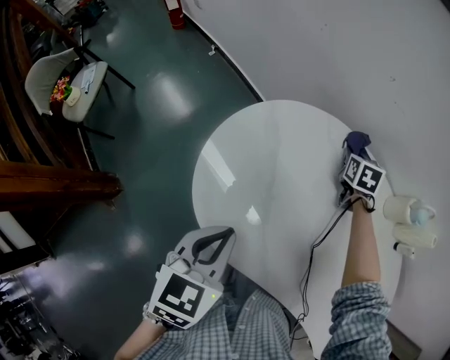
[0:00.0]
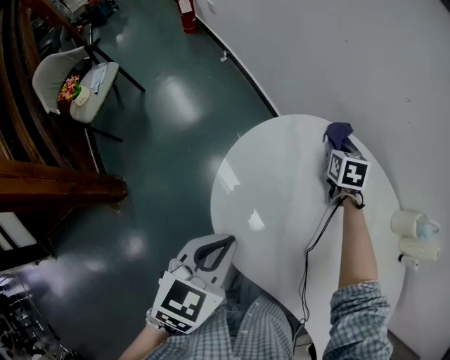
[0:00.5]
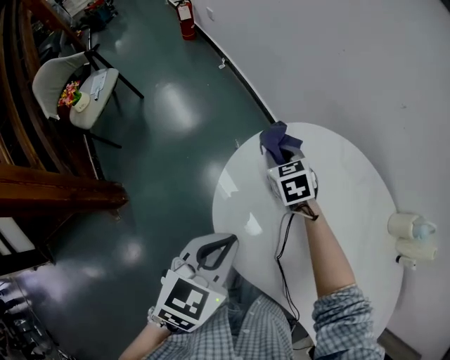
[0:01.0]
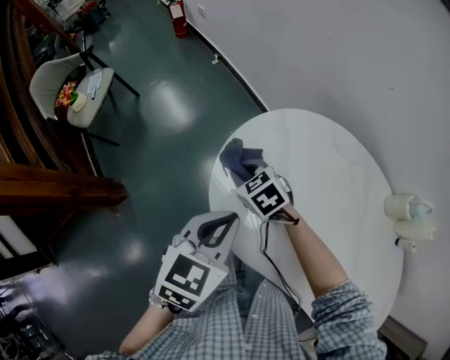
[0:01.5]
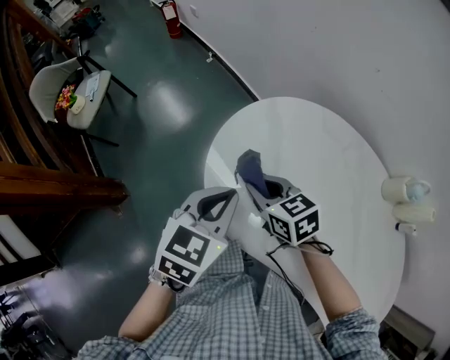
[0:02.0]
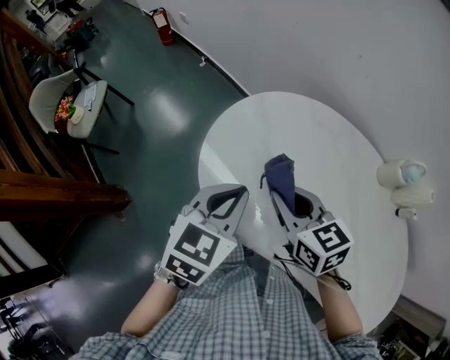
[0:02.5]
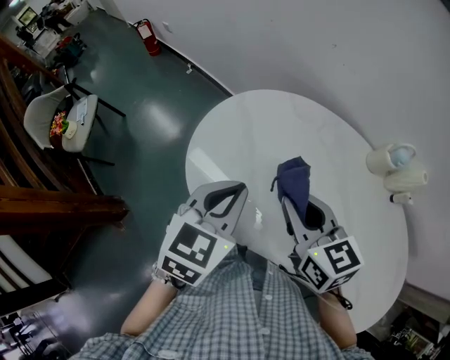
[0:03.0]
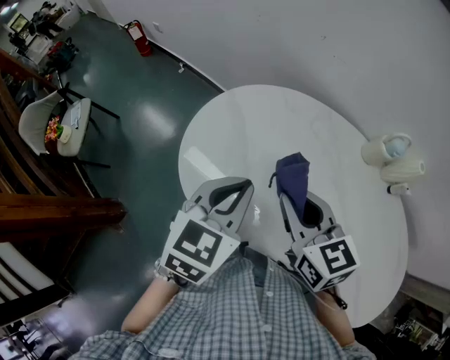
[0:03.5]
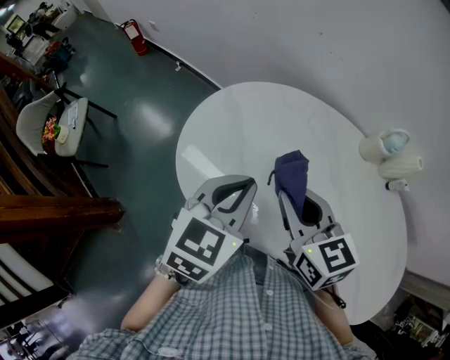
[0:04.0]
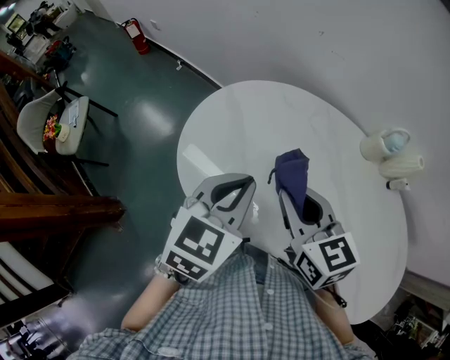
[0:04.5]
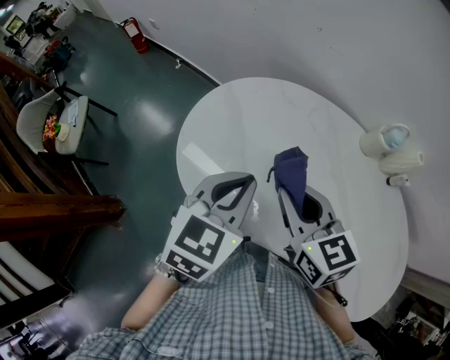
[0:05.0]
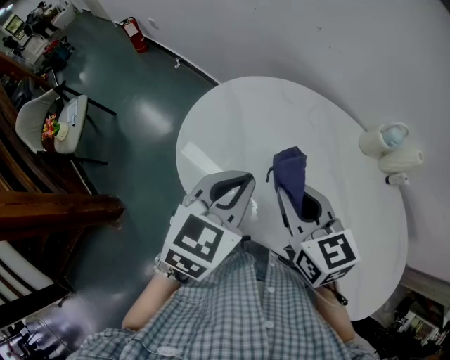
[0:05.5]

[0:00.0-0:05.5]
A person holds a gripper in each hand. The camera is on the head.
0:00.0 to 0:02.0: The right gripper ends up approximately 40 cm from where it was, and swivels approximately 50 degrees.
0:02.0 to 0:03.5: The right gripper shifts approximately 20 cm to the right, upward and backward, and turns by roughly 30 degrees; the left gripper is displaced to the right by approximately 10 cm.
0:03.5 to 0:05.5: Neither gripper changes place.

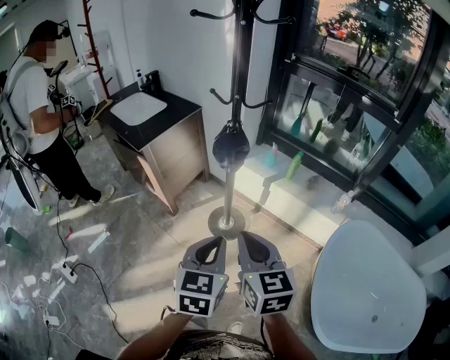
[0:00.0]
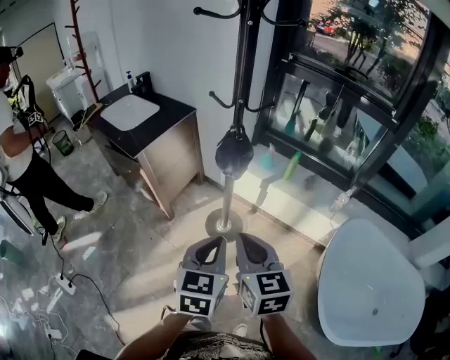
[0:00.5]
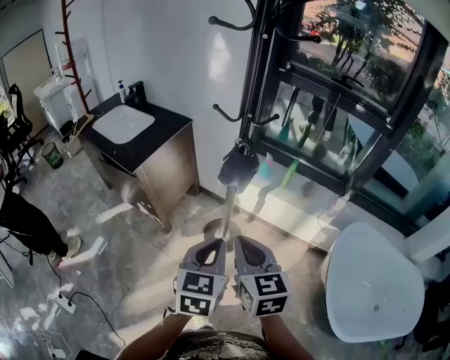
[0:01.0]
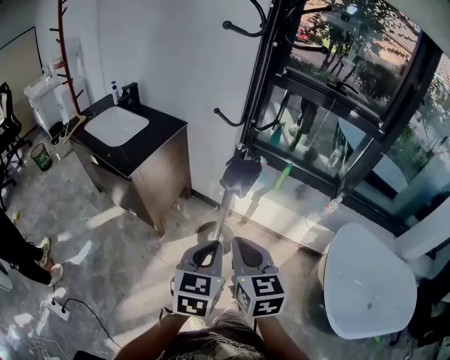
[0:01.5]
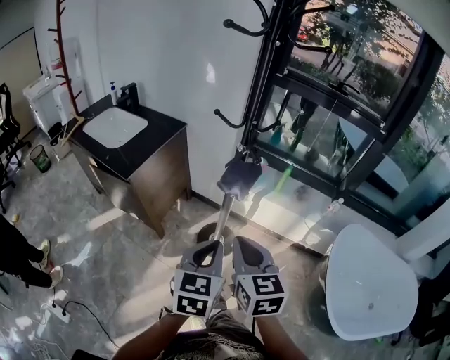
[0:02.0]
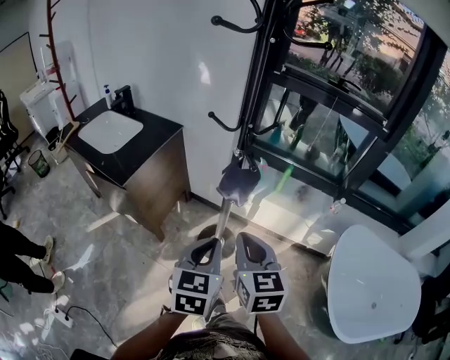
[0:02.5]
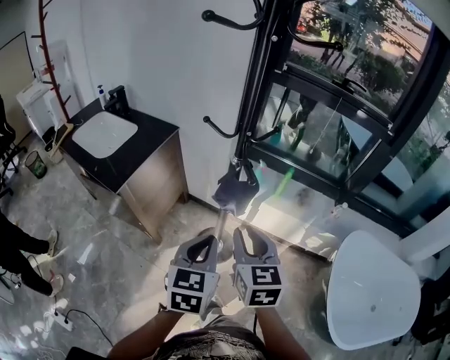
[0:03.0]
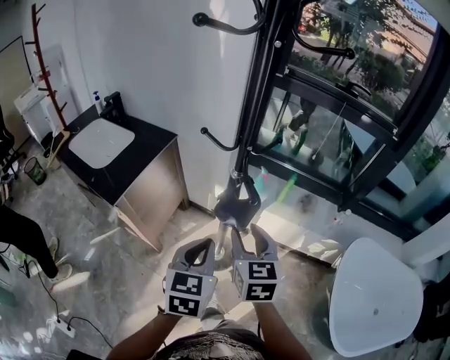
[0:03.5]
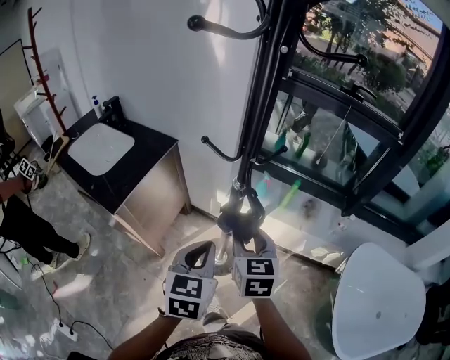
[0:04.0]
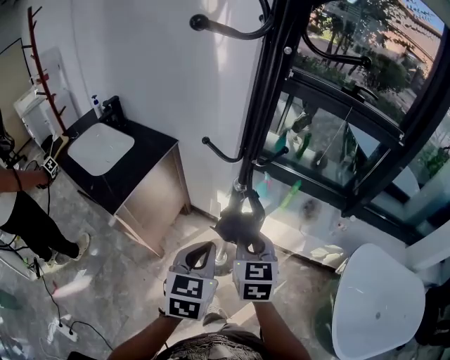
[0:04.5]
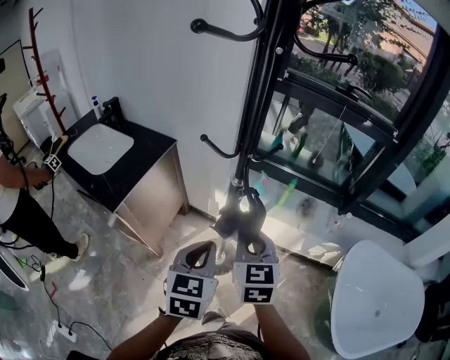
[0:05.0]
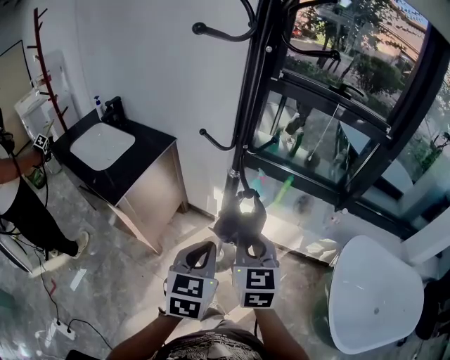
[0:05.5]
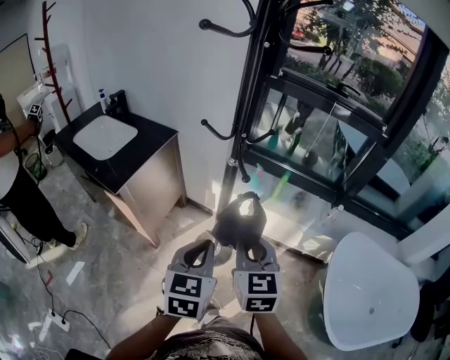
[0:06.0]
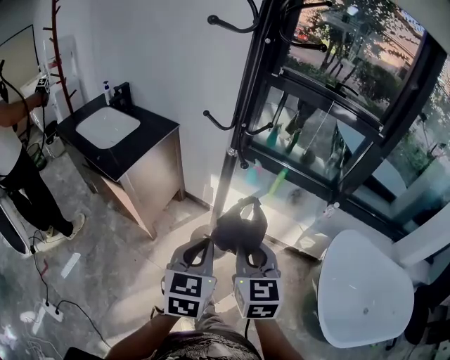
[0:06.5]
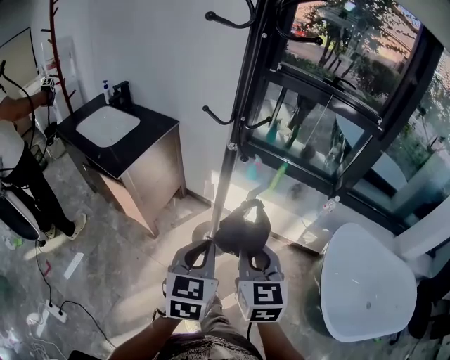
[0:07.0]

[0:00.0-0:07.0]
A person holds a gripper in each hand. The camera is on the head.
0:00.0 to 0:02.0: Both grippers travel together to the left and forward, approximately 15 cm.
0:02.0 to 0:03.5: The two grippers go roughly 15 cm forward. The right gripper opens its fingers.
0:03.5 to 0:05.0: The right gripper closes up.
0:05.0 to 0:07.0: Both grippers travel together backward, roughly 15 cm.

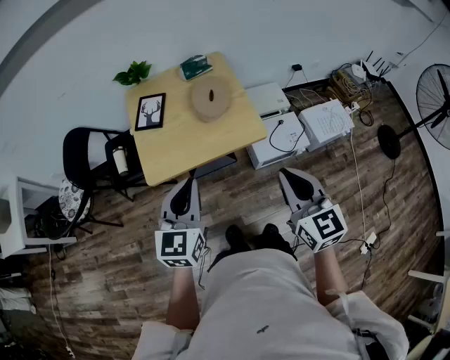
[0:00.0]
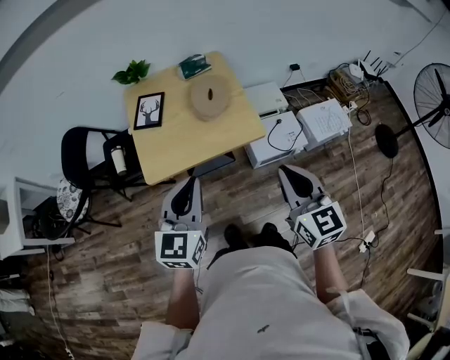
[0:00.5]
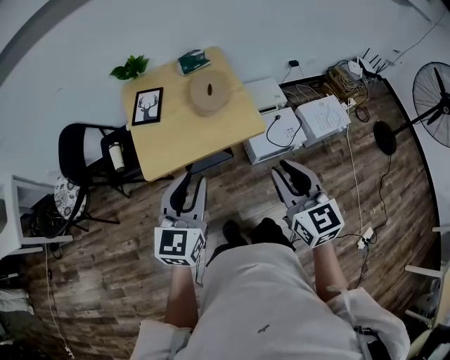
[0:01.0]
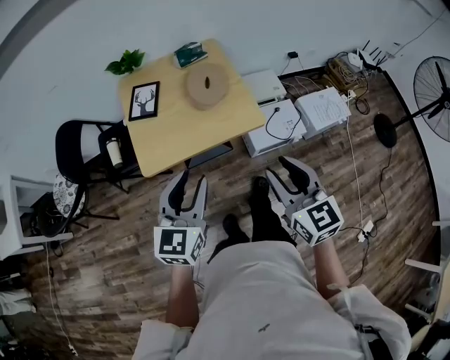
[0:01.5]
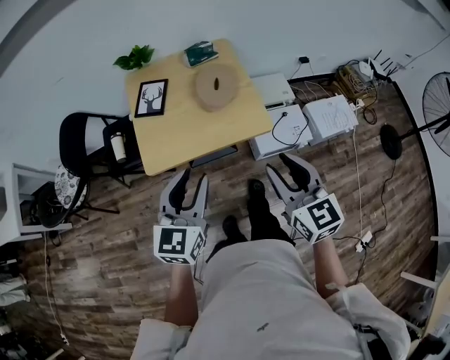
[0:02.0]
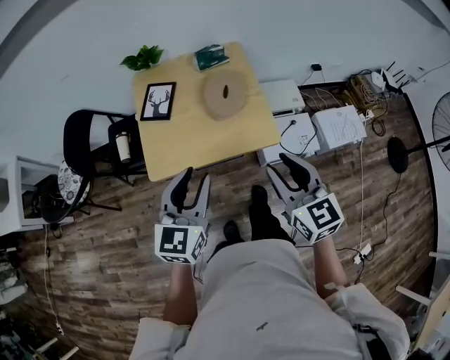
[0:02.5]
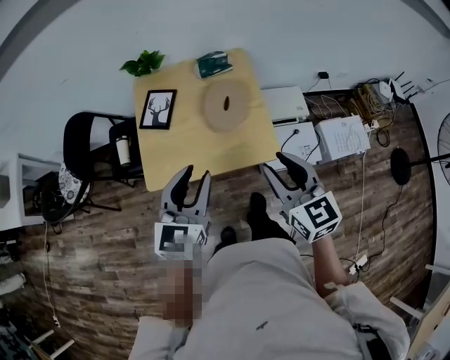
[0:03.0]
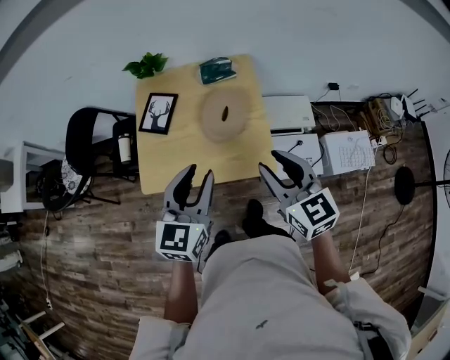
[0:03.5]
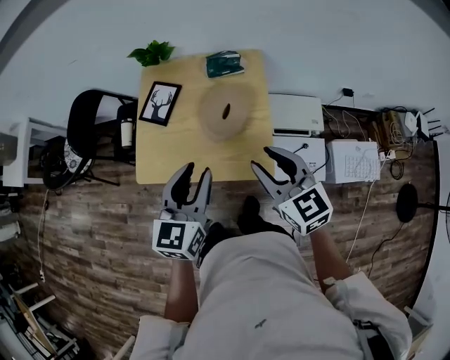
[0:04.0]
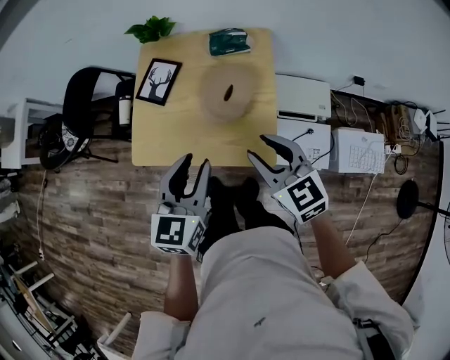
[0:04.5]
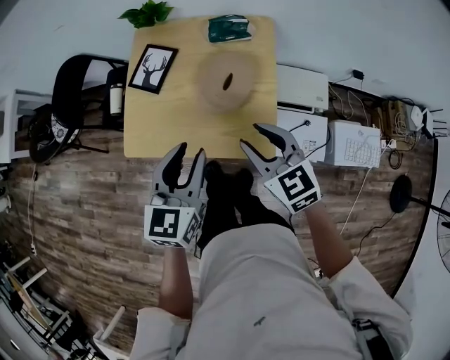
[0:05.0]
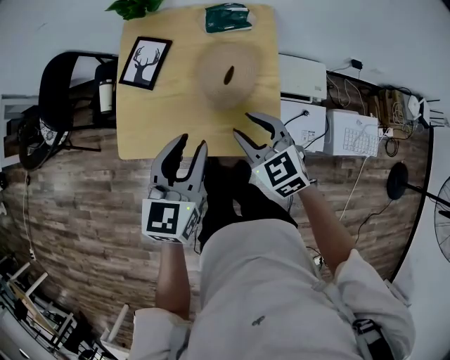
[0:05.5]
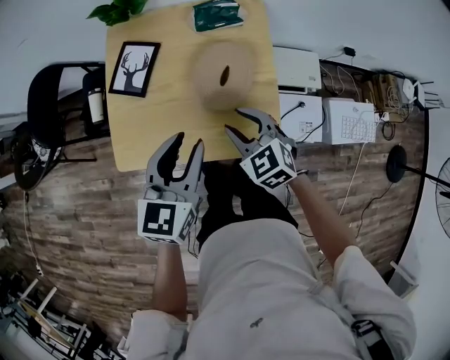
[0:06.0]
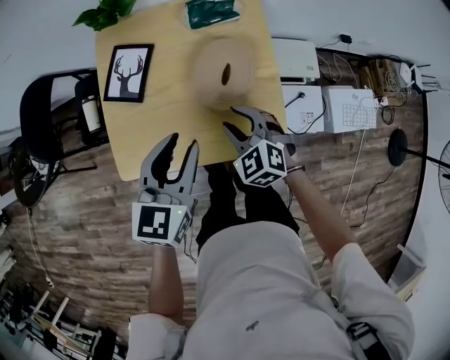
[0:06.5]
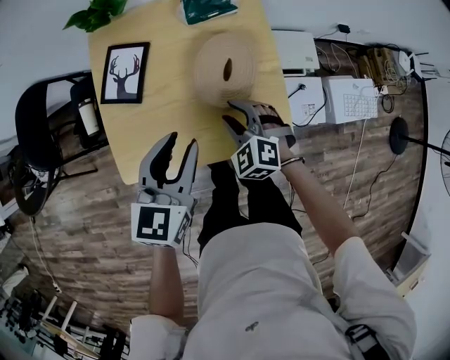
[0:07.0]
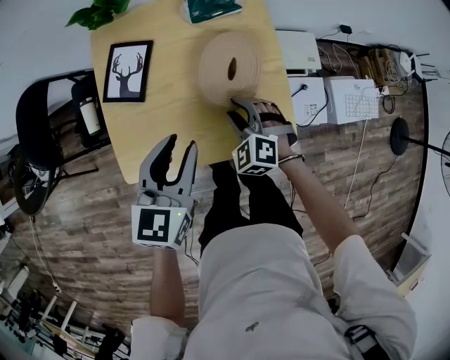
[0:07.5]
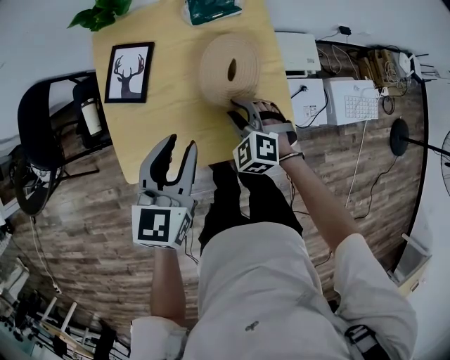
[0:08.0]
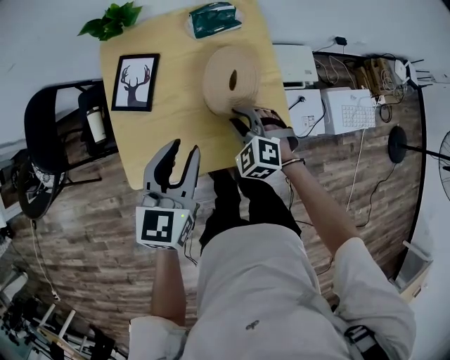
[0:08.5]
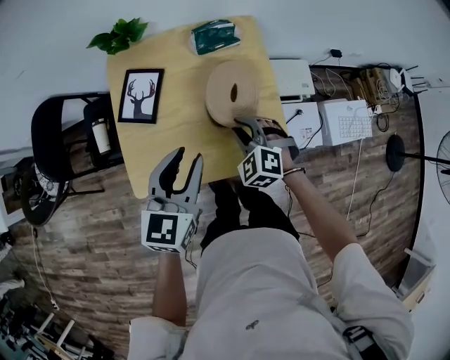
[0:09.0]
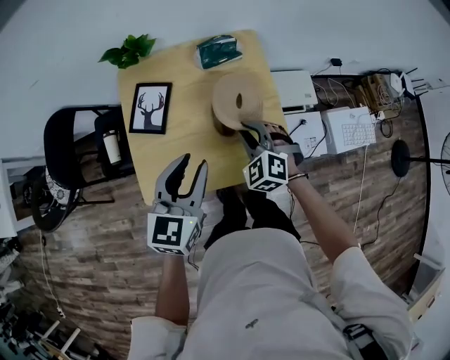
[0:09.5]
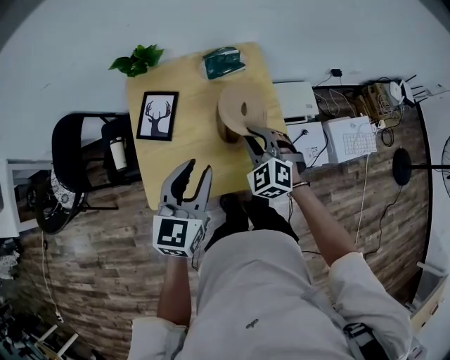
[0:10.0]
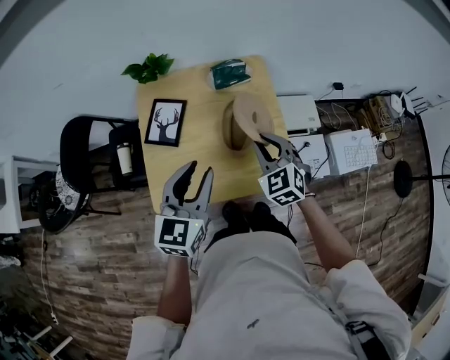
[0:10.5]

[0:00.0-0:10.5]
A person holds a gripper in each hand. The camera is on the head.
0:00.0 to 0:02.0: The left gripper opens up. Meanwhile the right gripper opens.
0:02.0 to 0:04.0: The left gripper is displaced forward and to the right by roughly 25 cm. The right gripper travels forward by about 25 cm, and changes its angle by about 30 degrees.
0:04.0 to 0:06.5: The left gripper moves downward, forward and to the left, about 15 cm, while the right gripper moves downward, forward and to the left, some 25 cm, and changes its angle by some 40 degrees.
0:06.5 to 0:08.5: There are only small adjustments of the grippers.
0:08.5 to 0:10.5: The left gripper is displaced upward by some 10 cm, while the right gripper goes approximately 15 cm upward, and rotates approximately 30 degrees.

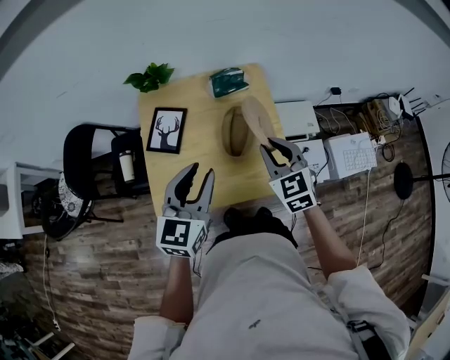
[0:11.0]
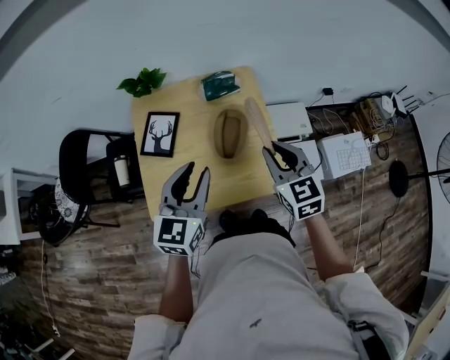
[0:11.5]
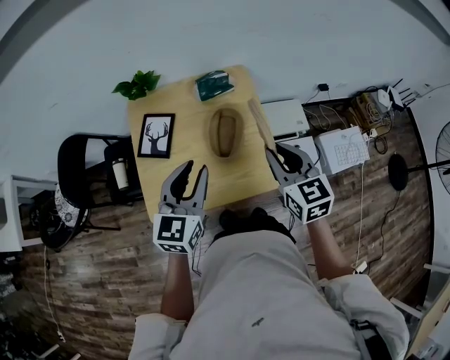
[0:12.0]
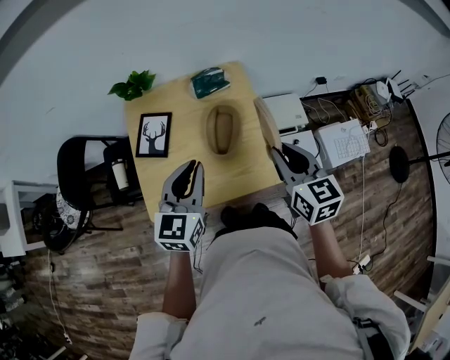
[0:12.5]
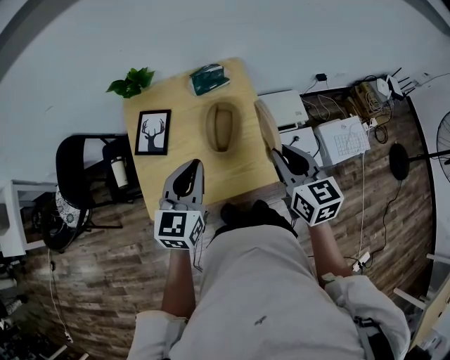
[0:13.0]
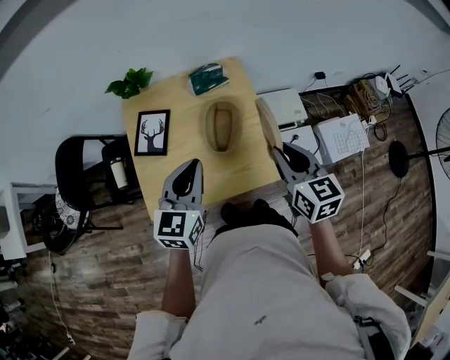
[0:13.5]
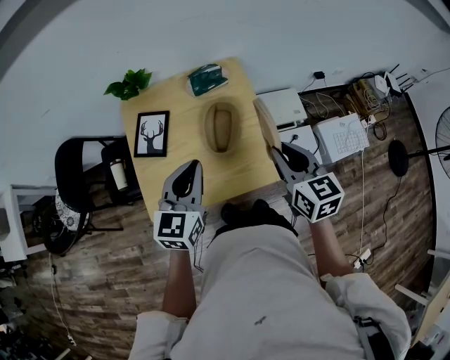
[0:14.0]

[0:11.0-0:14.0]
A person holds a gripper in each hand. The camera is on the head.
0:11.0 to 0:12.5: The right gripper is displaced to the right and upward by some 10 cm, and rotates some 30 degrees. The left gripper closes its fingers.
0:12.5 to 0:14.0: The grippers stay close to where they were, moving slightly.
